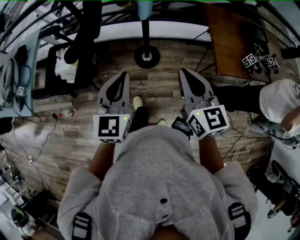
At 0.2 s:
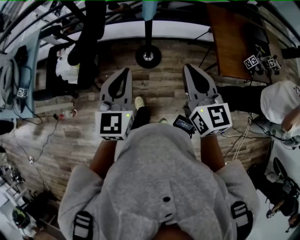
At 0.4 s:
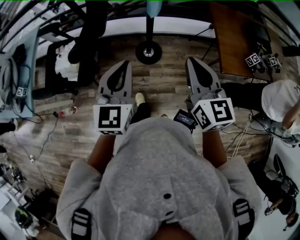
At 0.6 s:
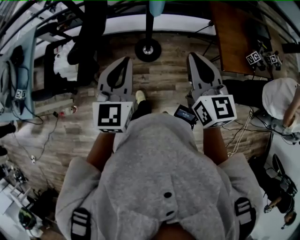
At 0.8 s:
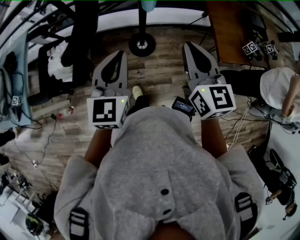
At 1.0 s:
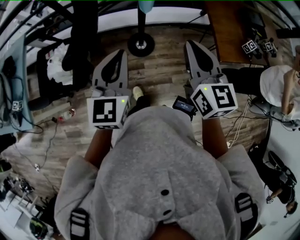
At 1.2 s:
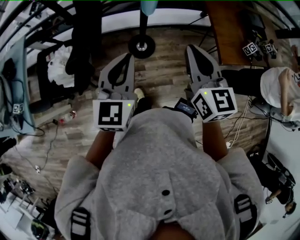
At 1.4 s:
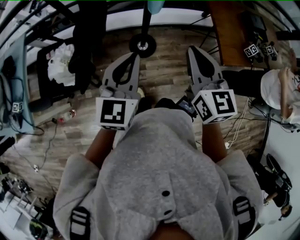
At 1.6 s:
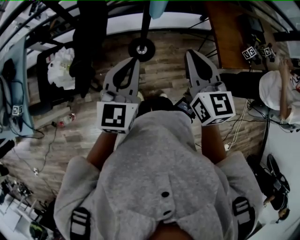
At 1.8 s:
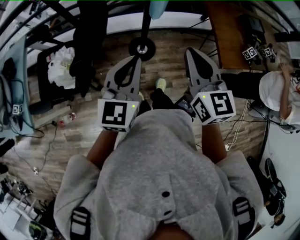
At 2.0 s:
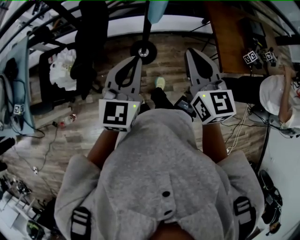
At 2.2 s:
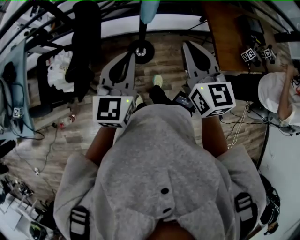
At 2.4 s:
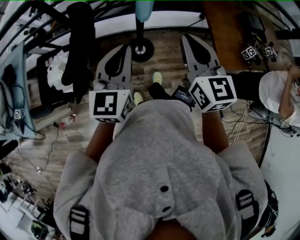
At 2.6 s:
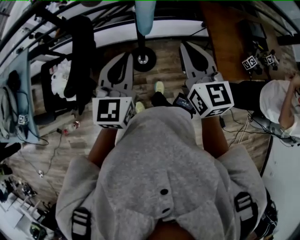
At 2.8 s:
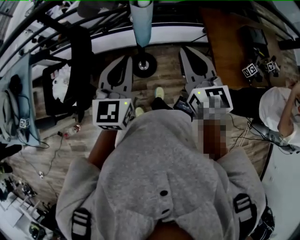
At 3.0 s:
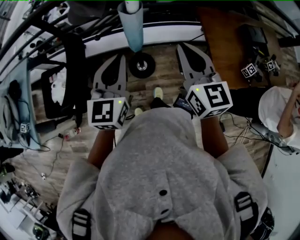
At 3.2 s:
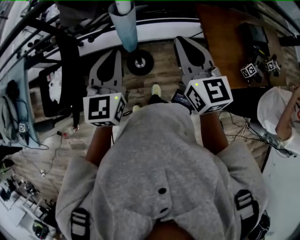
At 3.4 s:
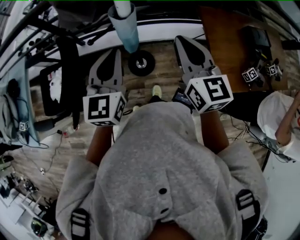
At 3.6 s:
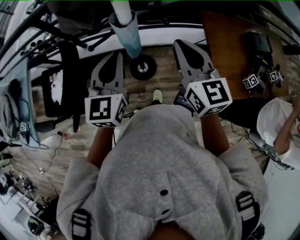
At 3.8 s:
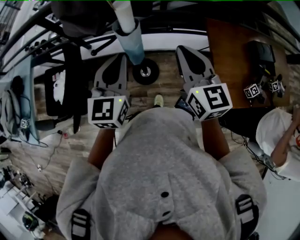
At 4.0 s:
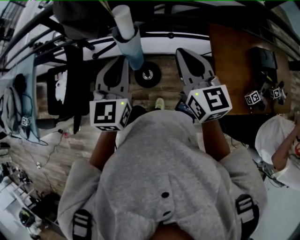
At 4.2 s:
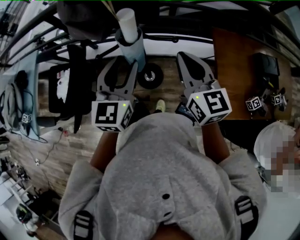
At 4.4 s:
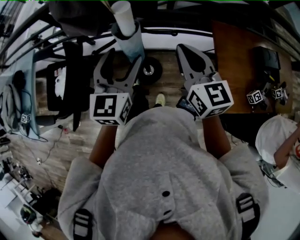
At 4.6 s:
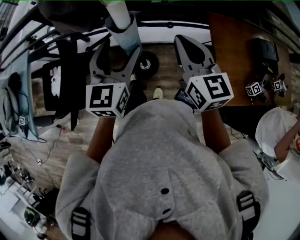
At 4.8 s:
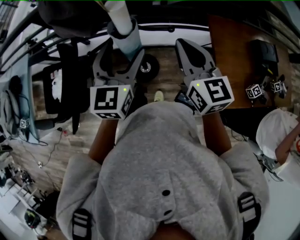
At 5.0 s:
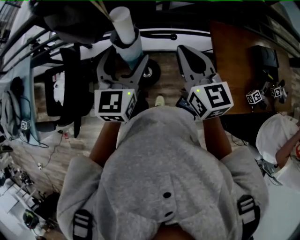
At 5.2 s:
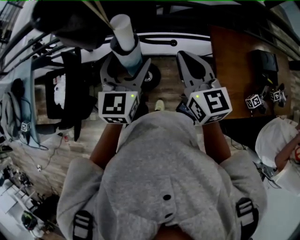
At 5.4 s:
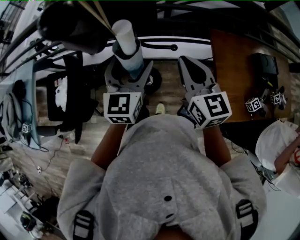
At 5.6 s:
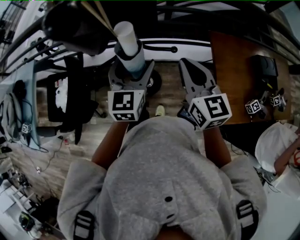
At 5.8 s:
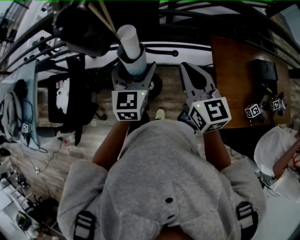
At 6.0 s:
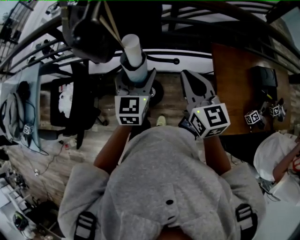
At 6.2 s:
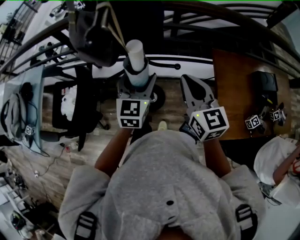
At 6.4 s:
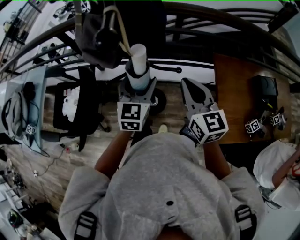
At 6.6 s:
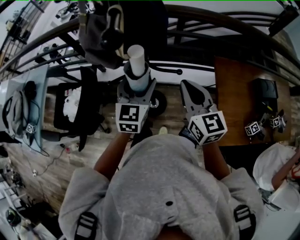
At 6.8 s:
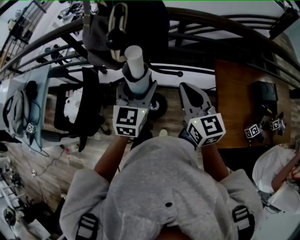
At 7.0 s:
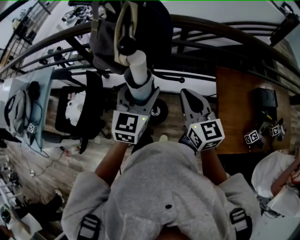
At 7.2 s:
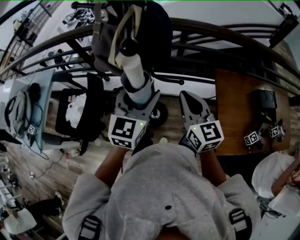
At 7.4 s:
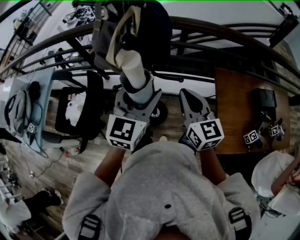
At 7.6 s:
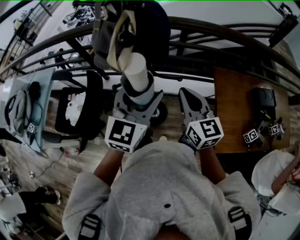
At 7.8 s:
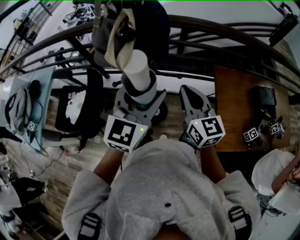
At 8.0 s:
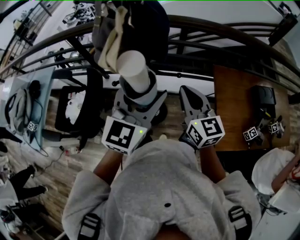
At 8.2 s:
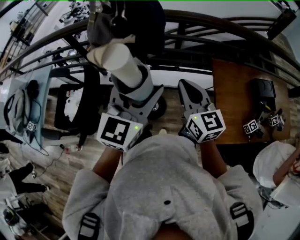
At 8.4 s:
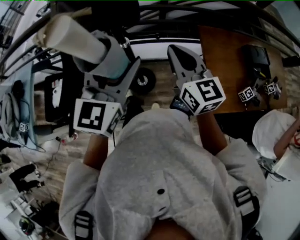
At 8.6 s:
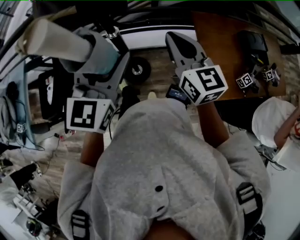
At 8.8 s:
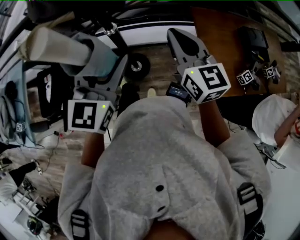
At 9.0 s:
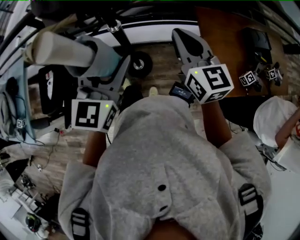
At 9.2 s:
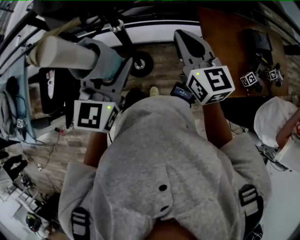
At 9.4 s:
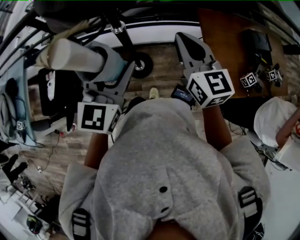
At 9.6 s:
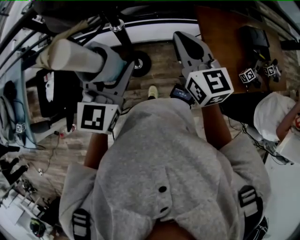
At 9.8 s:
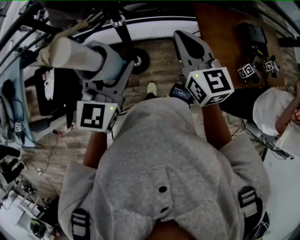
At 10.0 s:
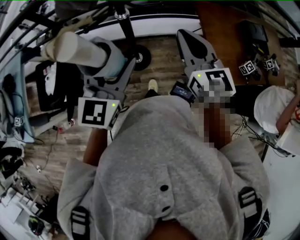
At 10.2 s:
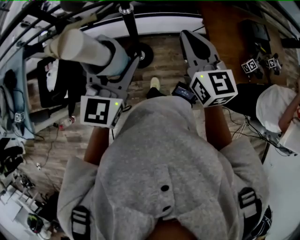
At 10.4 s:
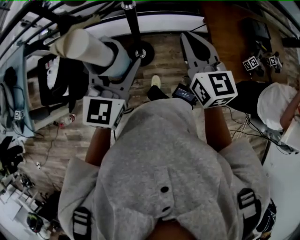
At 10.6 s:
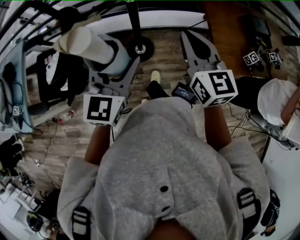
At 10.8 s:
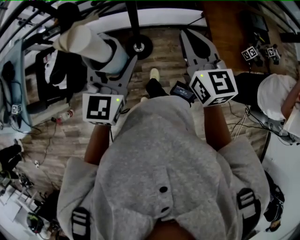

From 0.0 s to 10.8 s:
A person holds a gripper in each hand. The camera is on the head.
From 0.0 s to 1.6 s: The grippers both shift forward and to the left by roughly 10 cm.
From 1.6 s to 3.0 s: The left gripper heads forward, covering some 15 cm; the right gripper goes approximately 20 cm forward and to the right.
From 3.0 s to 4.6 s: The grippers both shift forward by some 10 cm. The left gripper opens.
From 4.6 s to 6.2 s: The left gripper moves about 5 cm.
From 6.2 s to 7.8 s: The left gripper travels upward and backward by about 15 cm.
From 7.8 s to 9.2 s: The left gripper goes roughly 5 cm downward.
From 9.2 s to 10.8 s: The grippers both shift backward by roughly 15 cm.

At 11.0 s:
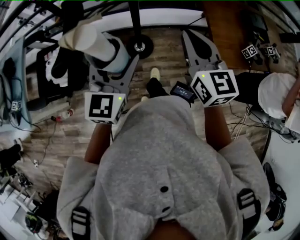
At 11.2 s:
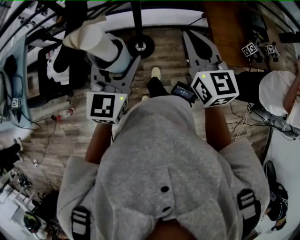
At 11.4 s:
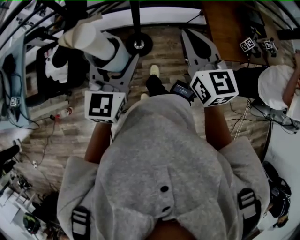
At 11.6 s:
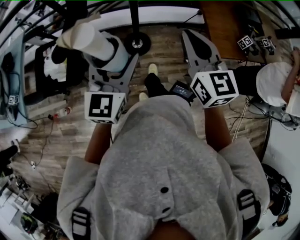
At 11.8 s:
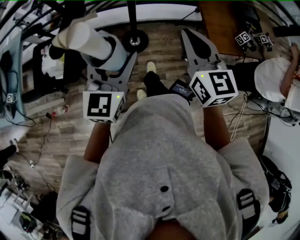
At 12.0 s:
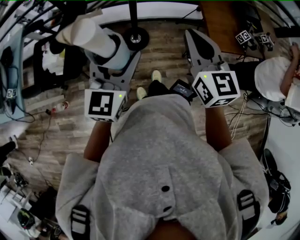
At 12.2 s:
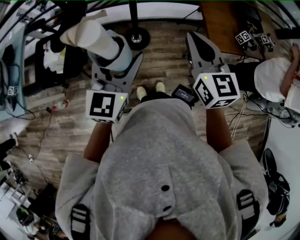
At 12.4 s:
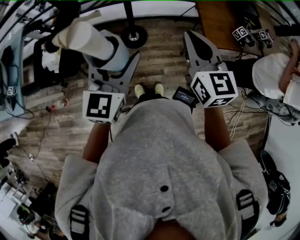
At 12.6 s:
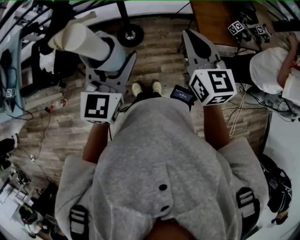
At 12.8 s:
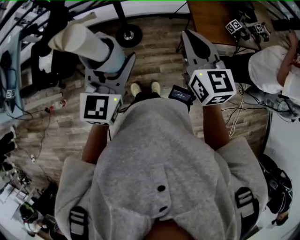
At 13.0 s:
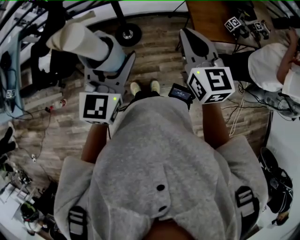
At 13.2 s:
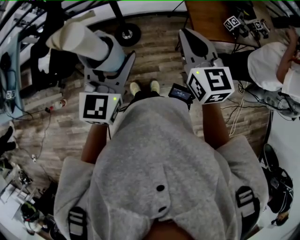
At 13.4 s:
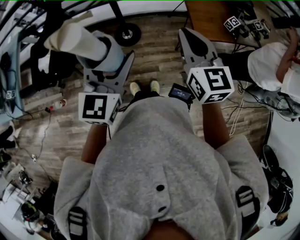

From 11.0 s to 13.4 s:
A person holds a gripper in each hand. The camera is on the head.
From 11.0 s to 12.2 s: The two grippers go about 10 cm backward.
From 12.2 s to 13.4 s: The grippers both shift to the right by roughly 10 cm.

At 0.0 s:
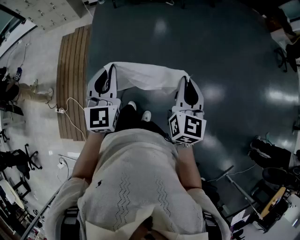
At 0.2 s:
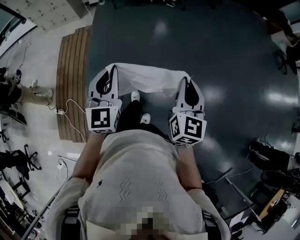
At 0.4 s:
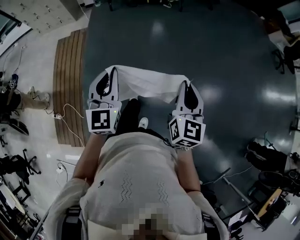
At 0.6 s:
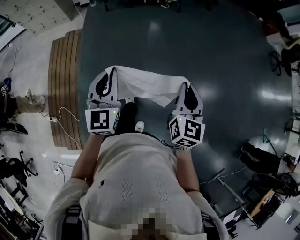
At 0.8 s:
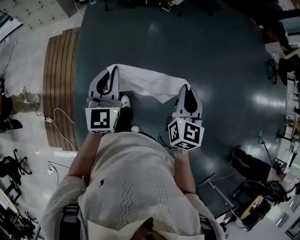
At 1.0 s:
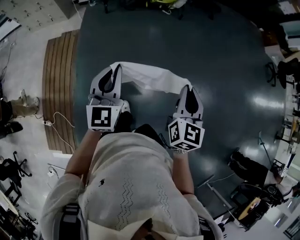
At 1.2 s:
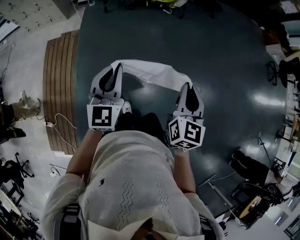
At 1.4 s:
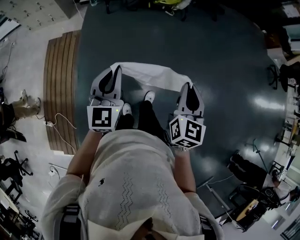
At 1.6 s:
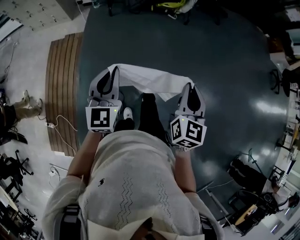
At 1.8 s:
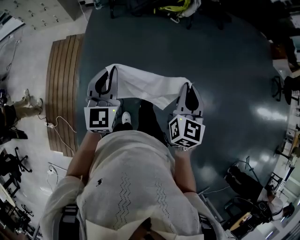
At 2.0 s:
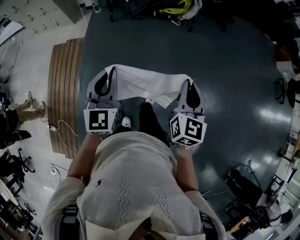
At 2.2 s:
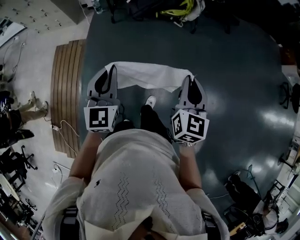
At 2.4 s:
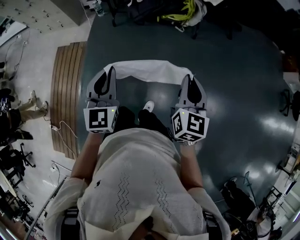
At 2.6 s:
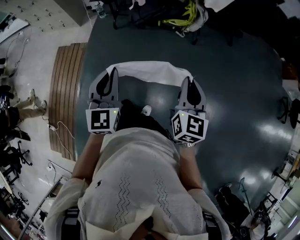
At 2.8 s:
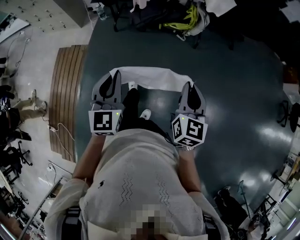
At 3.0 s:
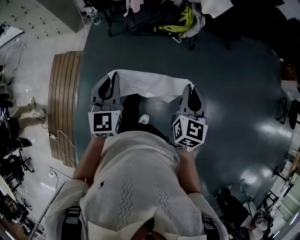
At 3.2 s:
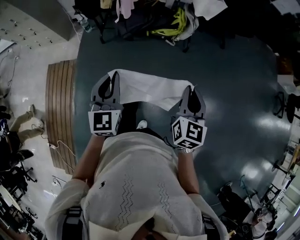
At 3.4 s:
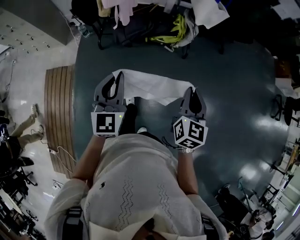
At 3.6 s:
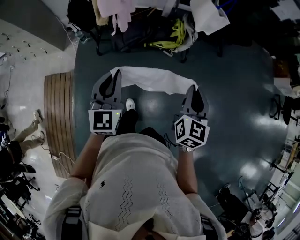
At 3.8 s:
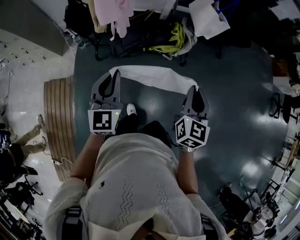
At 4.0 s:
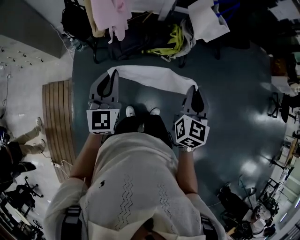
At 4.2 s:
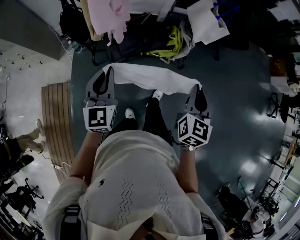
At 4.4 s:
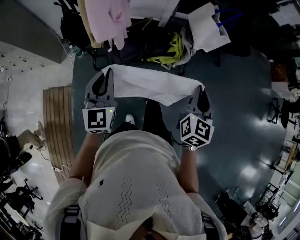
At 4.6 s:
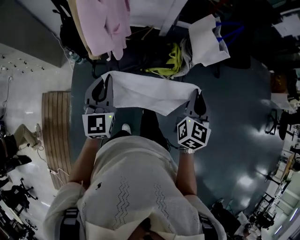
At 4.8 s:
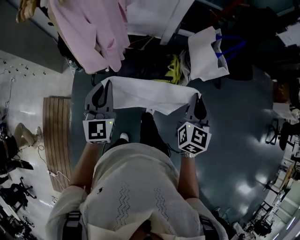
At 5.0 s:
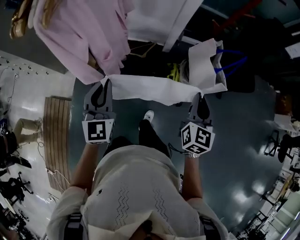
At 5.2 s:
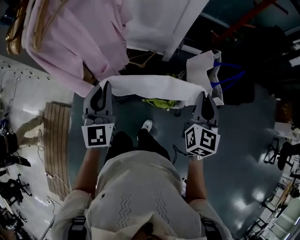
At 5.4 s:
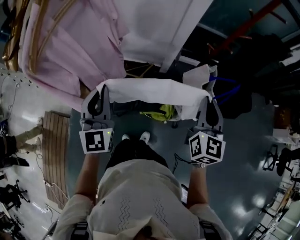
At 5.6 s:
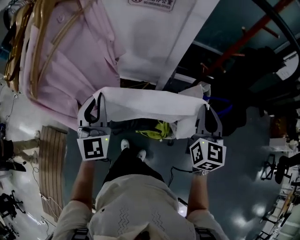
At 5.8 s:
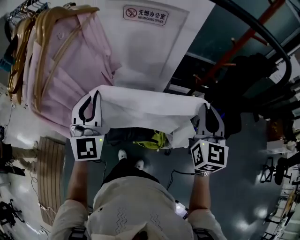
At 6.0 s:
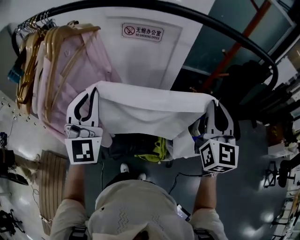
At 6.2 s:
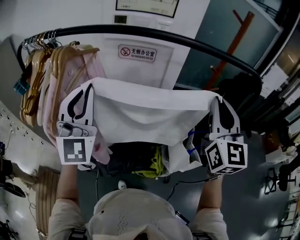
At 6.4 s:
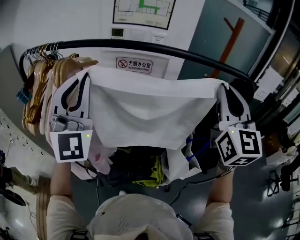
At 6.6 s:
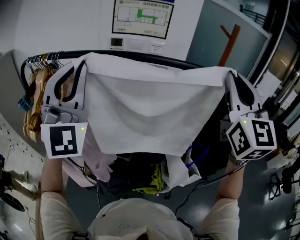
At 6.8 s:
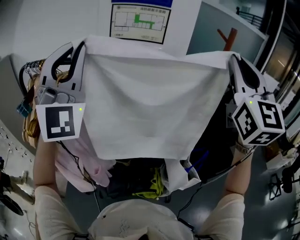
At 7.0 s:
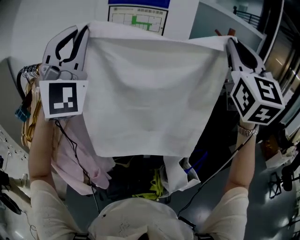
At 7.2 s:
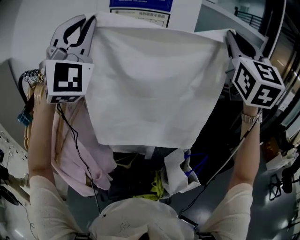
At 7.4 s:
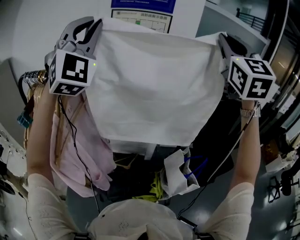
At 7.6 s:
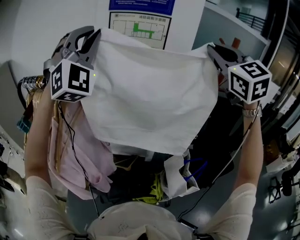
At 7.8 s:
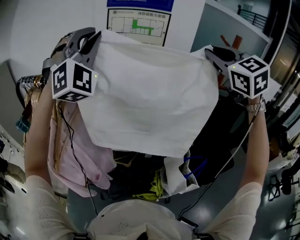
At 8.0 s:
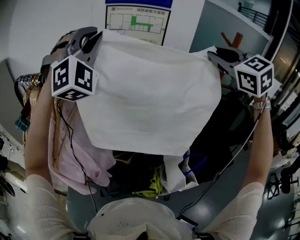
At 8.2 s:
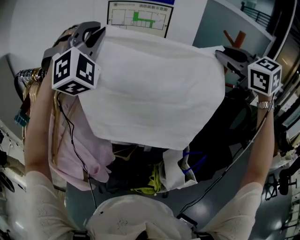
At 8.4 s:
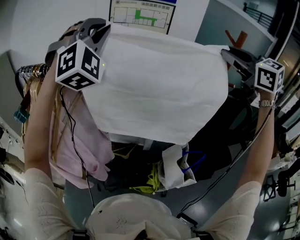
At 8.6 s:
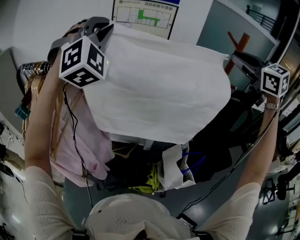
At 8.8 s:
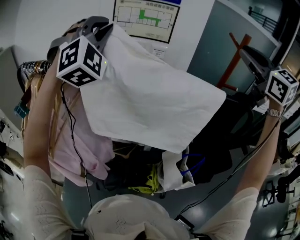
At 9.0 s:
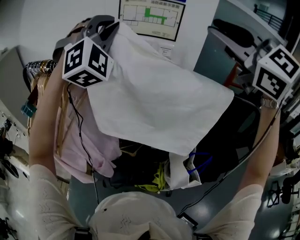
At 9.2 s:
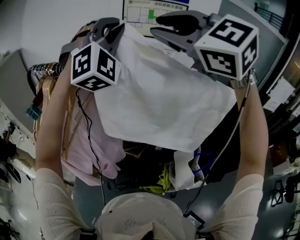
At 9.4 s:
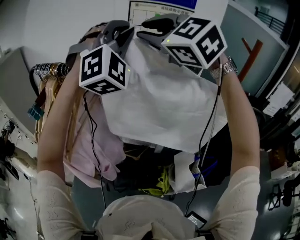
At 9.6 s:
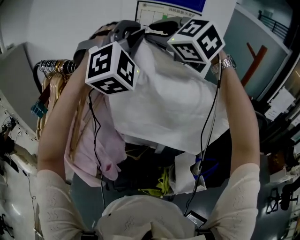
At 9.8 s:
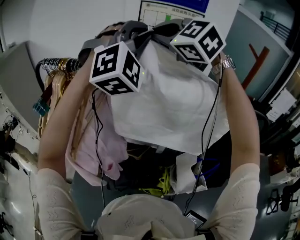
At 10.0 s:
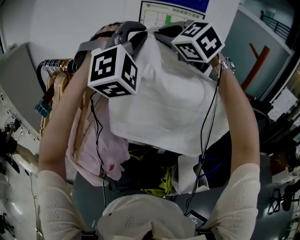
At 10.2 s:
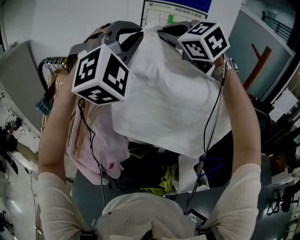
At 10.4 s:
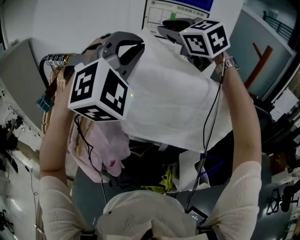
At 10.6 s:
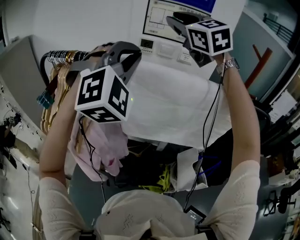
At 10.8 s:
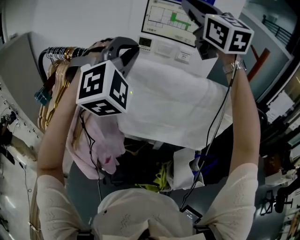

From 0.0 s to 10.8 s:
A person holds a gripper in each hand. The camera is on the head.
From 0.0 s to 1.6 s: The pair of grippers is taken forward, some 40 cm.
From 1.6 s to 3.0 s: Both grippers move forward, about 40 cm.
From 3.0 s to 4.6 s: Both grippers are carried forward, about 50 cm.
From 4.6 s to 6.2 s: Both grippers move forward and upward, some 50 cm. The right gripper changes its angle by about 30 degrees. The left gripper swivels approximately 40 degrees.
From 6.2 s to 7.8 s: Both grippers move upward and forward, roughly 30 cm. The left gripper rotates around the line of its fingers by some 50 degrees, clockwise from behind. Meanwhile the right gripper swivels roughly 40 degrees.
From 7.8 s to 9.2 s: The right gripper heads to the left, covering some 20 cm, and rotates roughly 30 degrees.
From 9.2 s to 10.8 s: The left gripper shifts roughly 10 cm downward and backward. The right gripper moves forward and upward, roughly 10 cm, and changes its angle by roughly 30 degrees.
